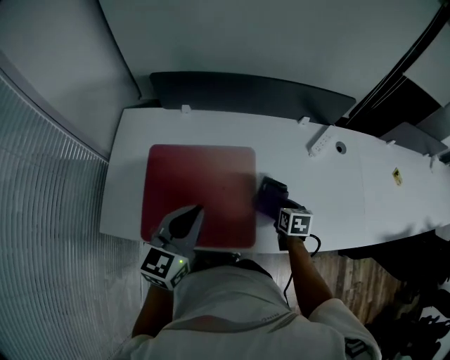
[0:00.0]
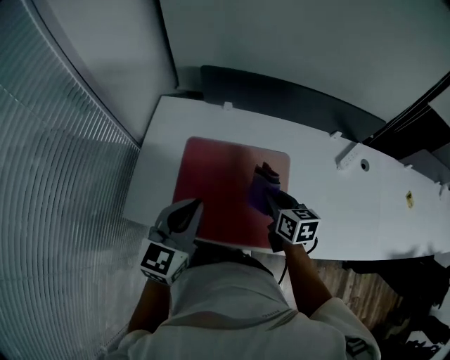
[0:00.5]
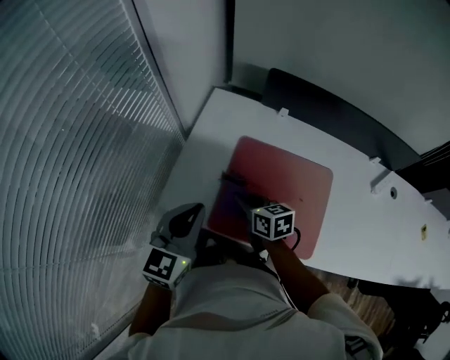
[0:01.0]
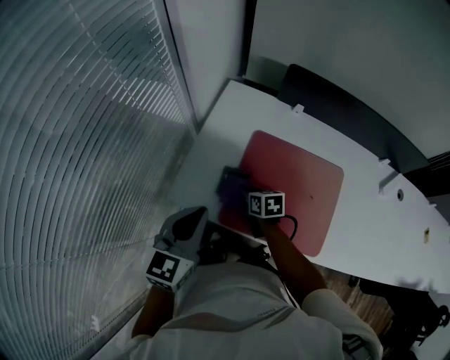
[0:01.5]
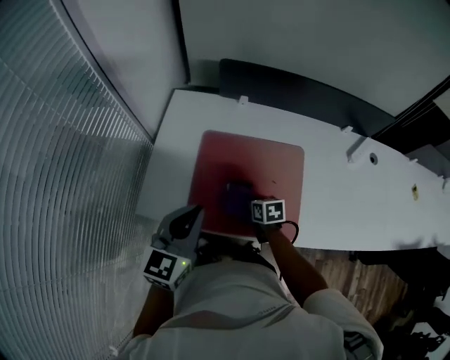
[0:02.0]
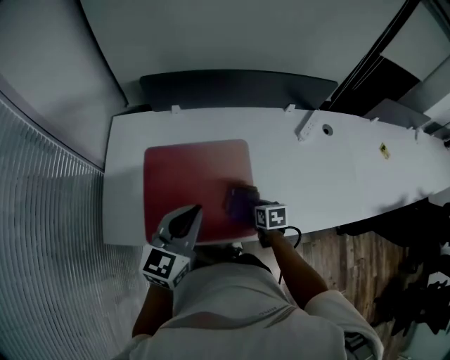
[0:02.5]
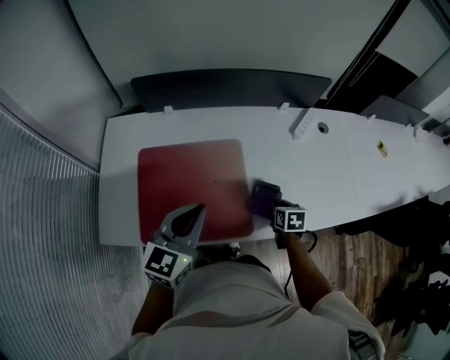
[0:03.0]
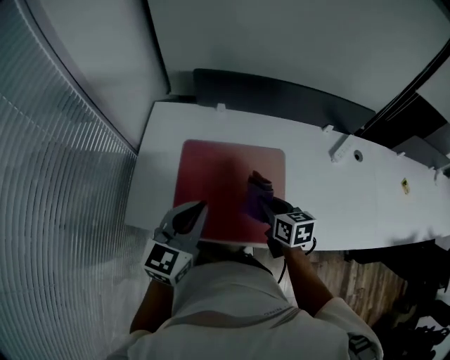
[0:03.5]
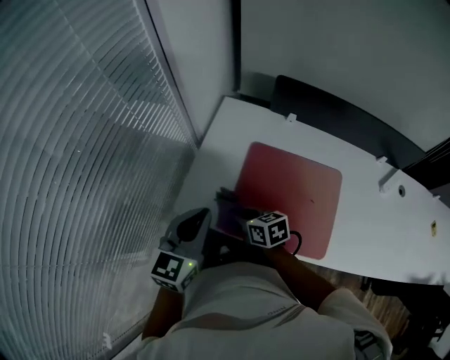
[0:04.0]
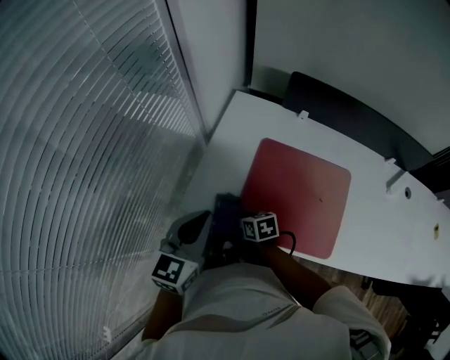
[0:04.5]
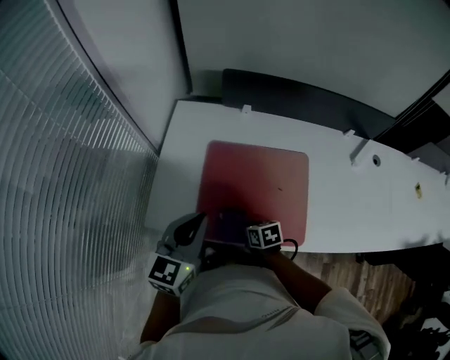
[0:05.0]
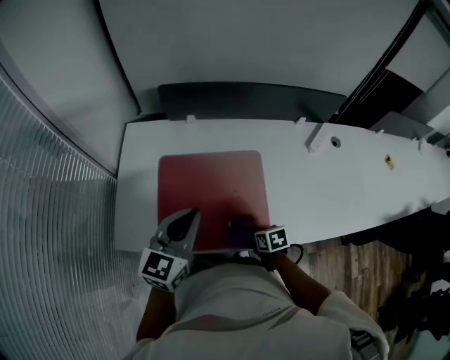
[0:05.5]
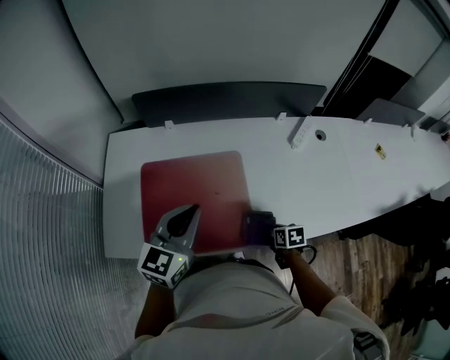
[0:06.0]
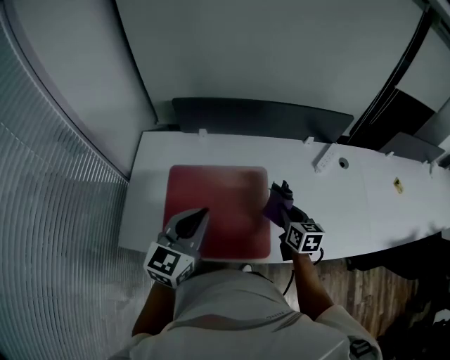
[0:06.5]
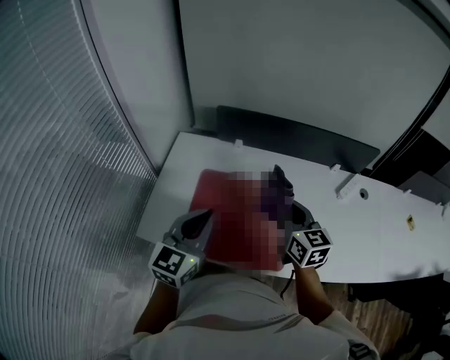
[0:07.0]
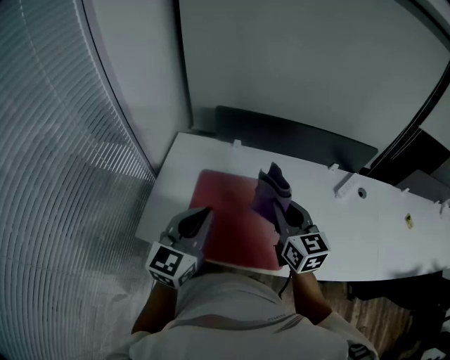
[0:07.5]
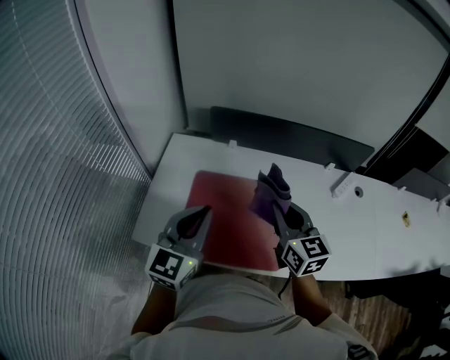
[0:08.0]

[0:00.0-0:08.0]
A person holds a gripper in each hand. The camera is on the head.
0:00.0 to 0:02.0: The right gripper reaches some 10 cm upward, then returns, and changes its angle by roughly 20 degrees.
0:02.0 to 0:04.0: The right gripper ends up some 25 cm from where it was, and rotates about 30 degrees.
0:04.0 to 0:06.0: The right gripper moves about 50 cm, and changes its angle by approximately 50 degrees. Meanwhile the left gripper ends up some 30 cm from where it was, and rotates some 30 degrees.
0:06.0 to 0:08.0: The right gripper heads upward and to the left, covering approximately 35 cm, and points its fingers roughly 50 degrees further upward; the left gripper is displaced to the left and upward by some 15 cm.

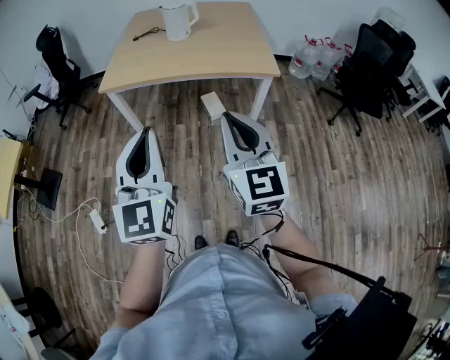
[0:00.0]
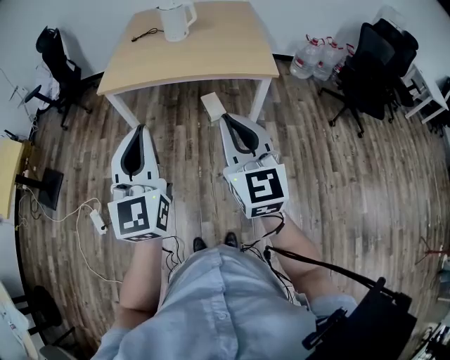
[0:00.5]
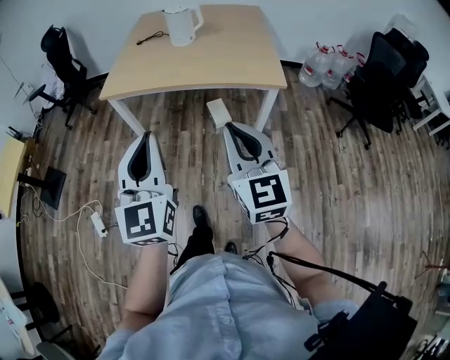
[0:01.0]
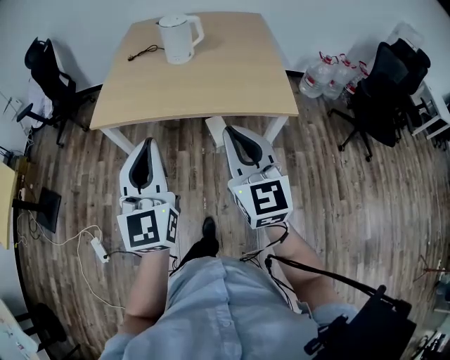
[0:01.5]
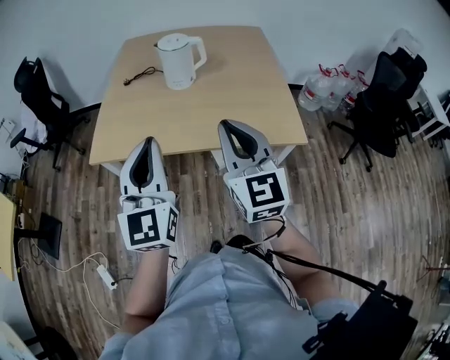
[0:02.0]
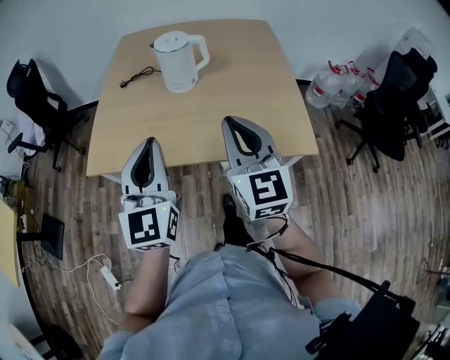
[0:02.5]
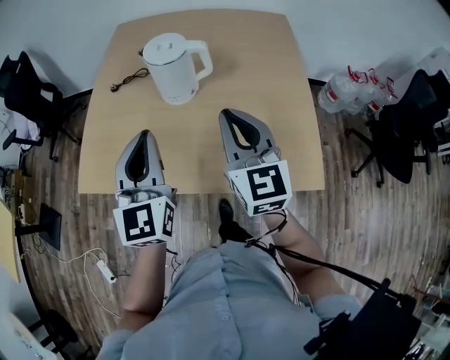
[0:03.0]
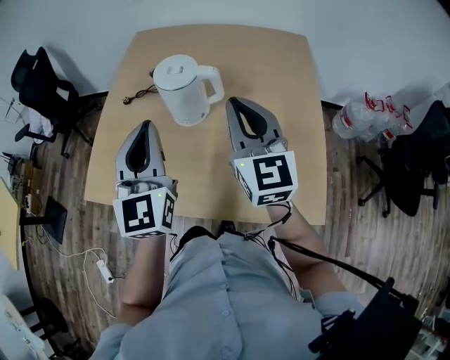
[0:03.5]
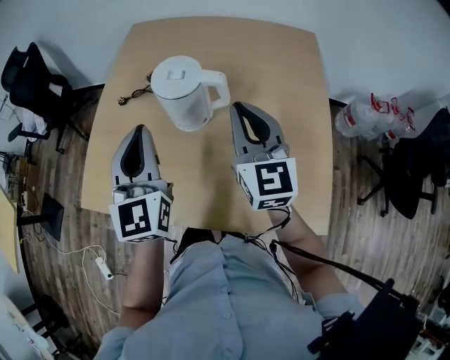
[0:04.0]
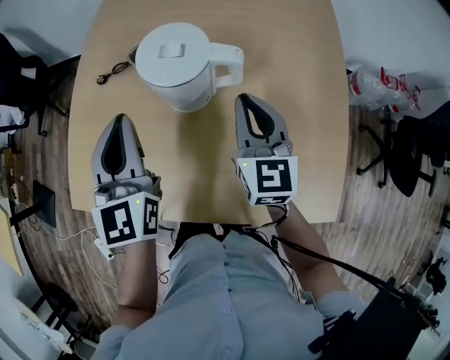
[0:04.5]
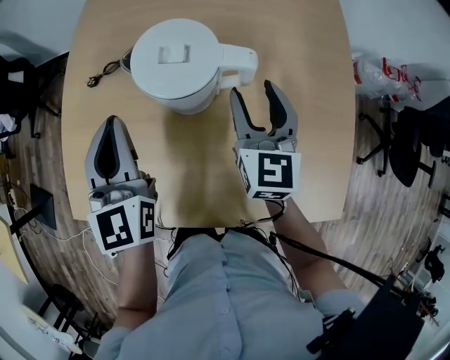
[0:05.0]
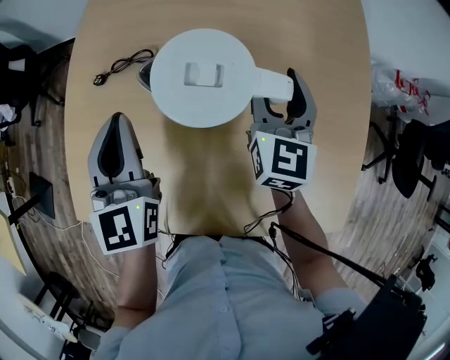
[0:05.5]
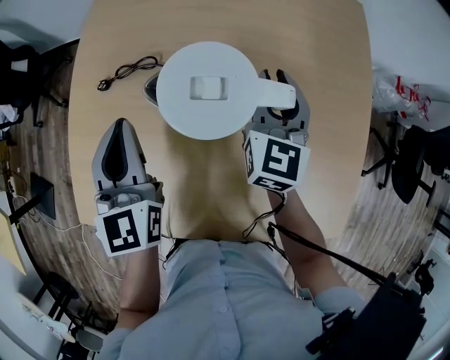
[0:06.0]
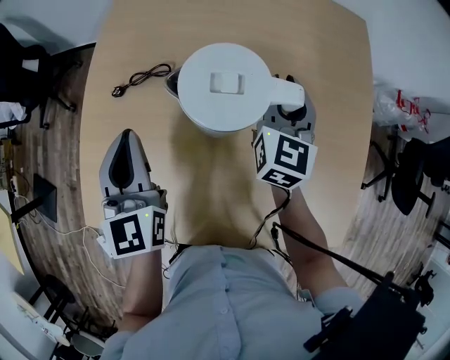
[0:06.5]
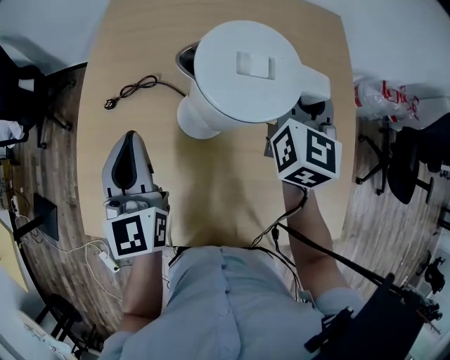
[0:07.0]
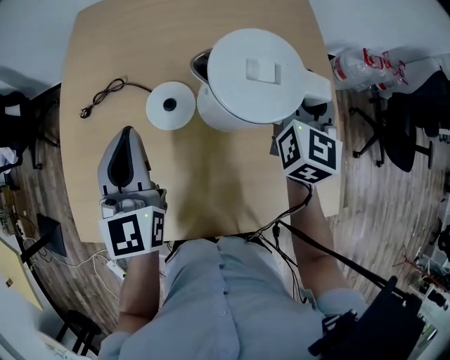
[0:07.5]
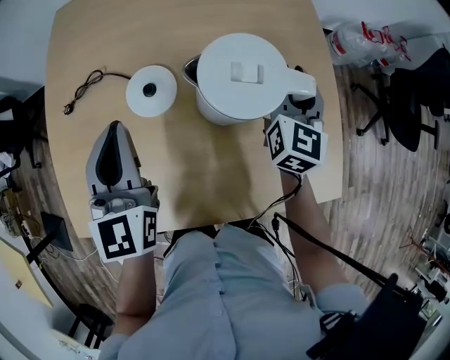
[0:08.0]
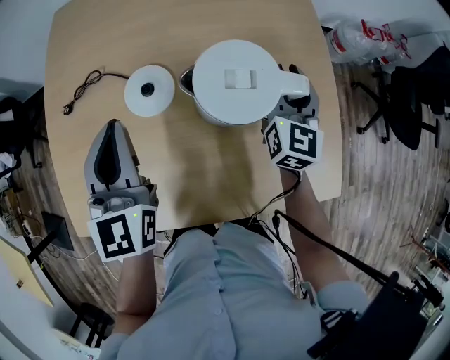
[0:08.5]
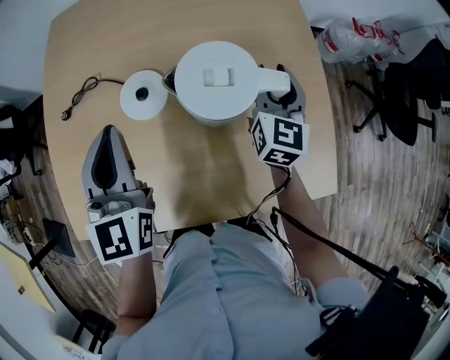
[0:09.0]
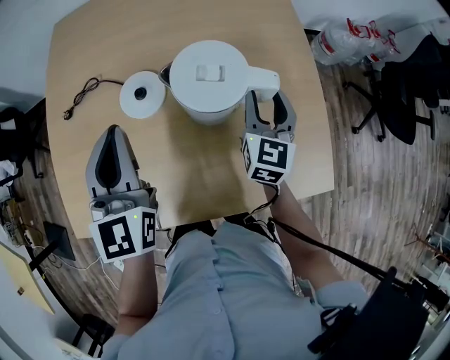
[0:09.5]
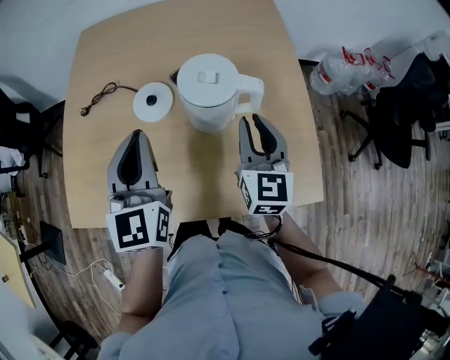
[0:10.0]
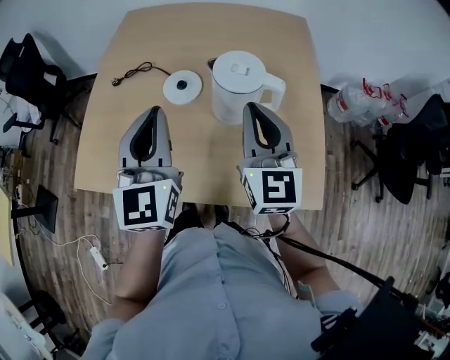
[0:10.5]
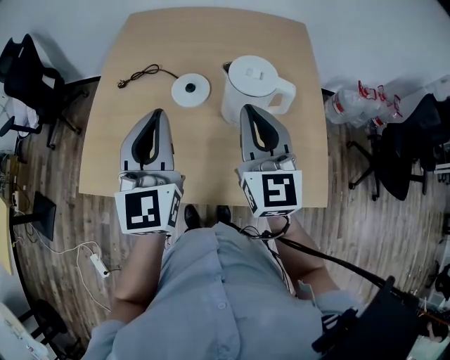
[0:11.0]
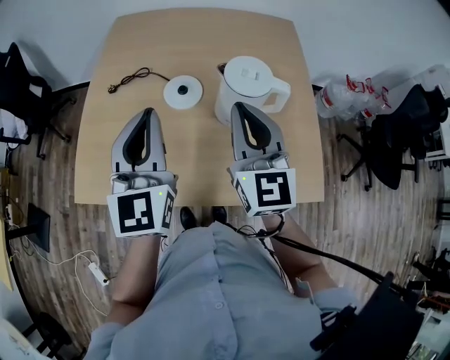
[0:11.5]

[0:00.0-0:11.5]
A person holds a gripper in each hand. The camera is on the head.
0:00.0 to 0:02.0: Both grippers move forward, some 35 cm.
0:02.0 to 0:04.0: Both grippers move forward, approximately 35 cm.
0:04.0 to 0:06.0: The left gripper travels forward, downward and to the left by approximately 15 cm. Meanwhile the right gripper shifts approximately 20 cm forward and downward, turns by roughly 20 degrees, and opens, then closes again.
0:06.0 to 0:07.5: The left gripper travels to the right by some 10 cm. Meanwhile the right gripper shifts some 15 cm to the right.
0:07.5 to 0:09.5: The right gripper shifts approximately 15 cm downward and backward, and opens. Meanwhile the left gripper heads to the right, covering about 5 cm.
0:09.5 to 0:11.5: The left gripper moves backward and upward, roughly 10 cm. The right gripper is displaced upward, to the left and backward by some 25 cm, rotates roughly 30 degrees, and closes.

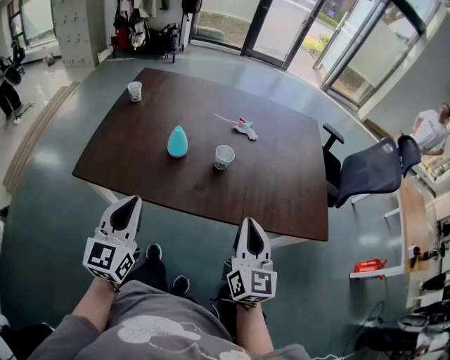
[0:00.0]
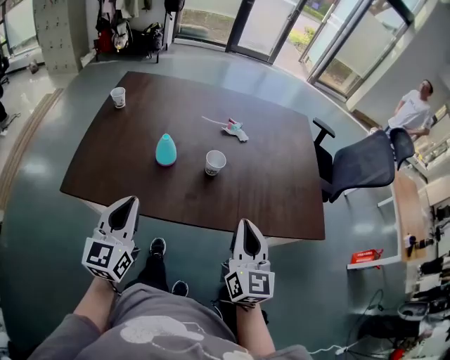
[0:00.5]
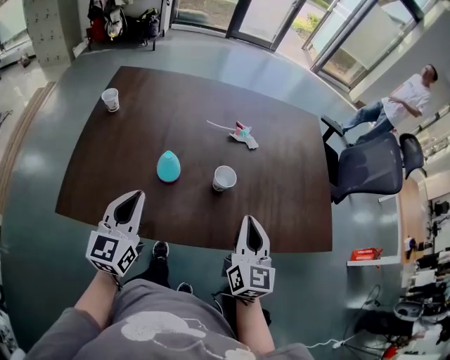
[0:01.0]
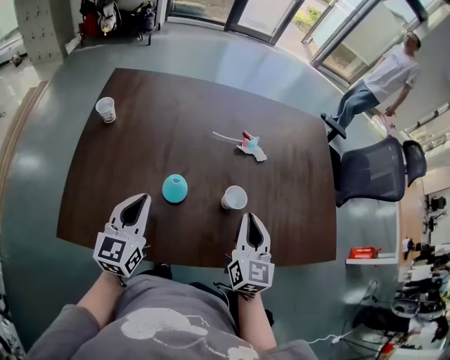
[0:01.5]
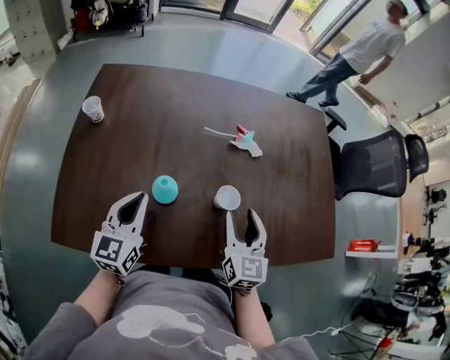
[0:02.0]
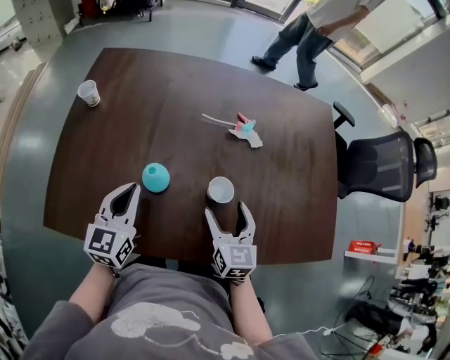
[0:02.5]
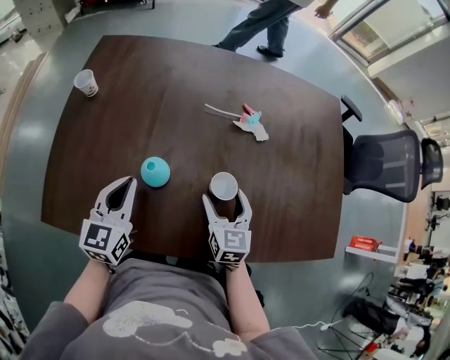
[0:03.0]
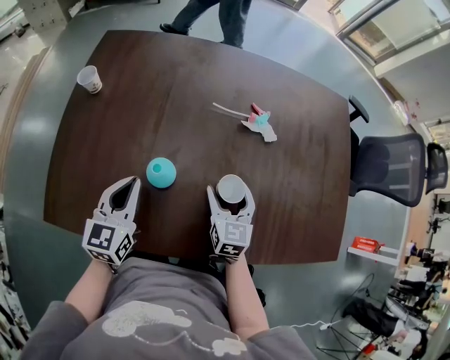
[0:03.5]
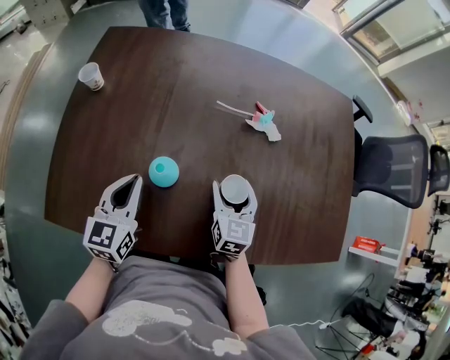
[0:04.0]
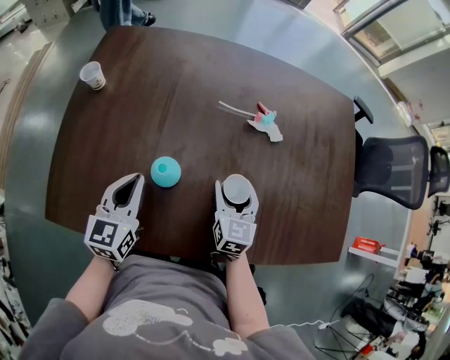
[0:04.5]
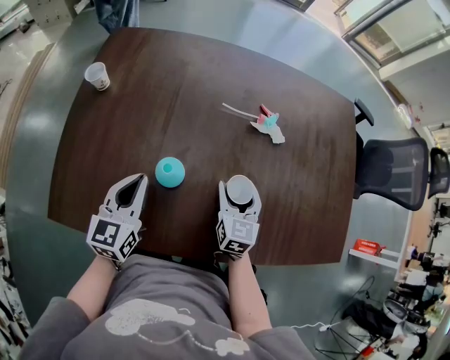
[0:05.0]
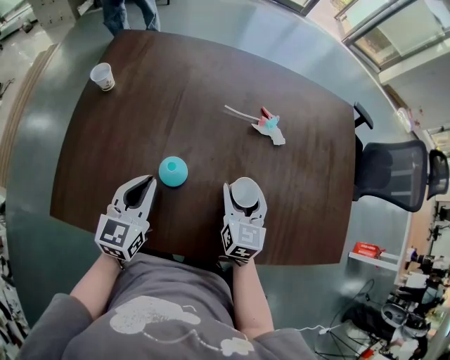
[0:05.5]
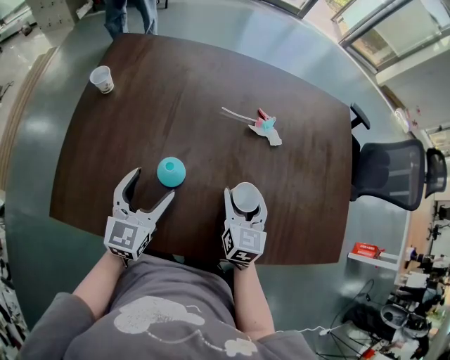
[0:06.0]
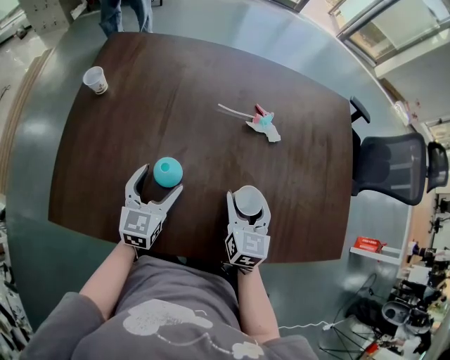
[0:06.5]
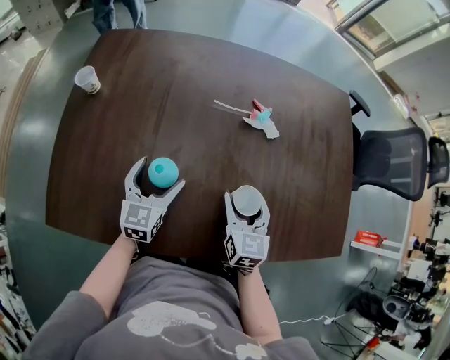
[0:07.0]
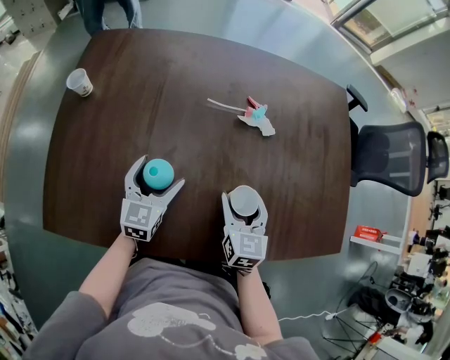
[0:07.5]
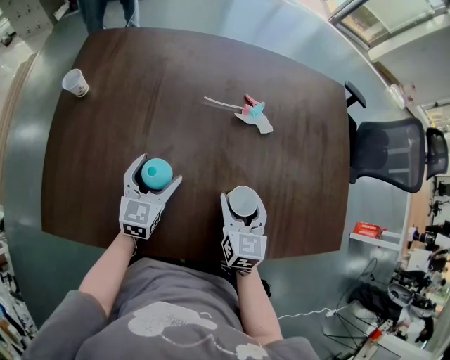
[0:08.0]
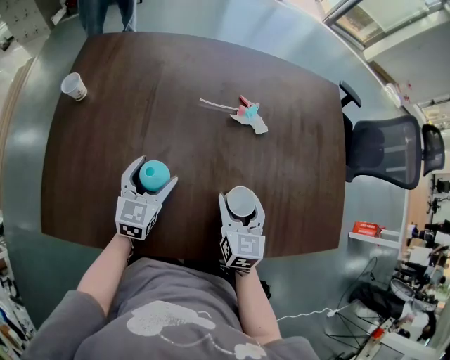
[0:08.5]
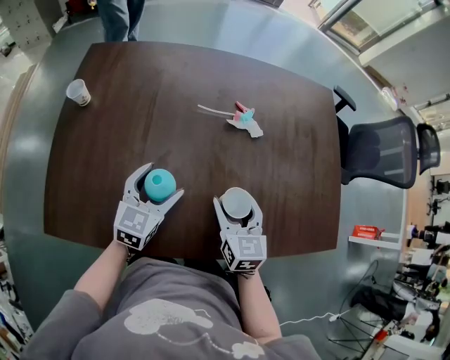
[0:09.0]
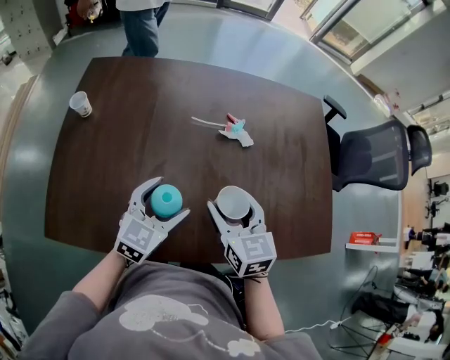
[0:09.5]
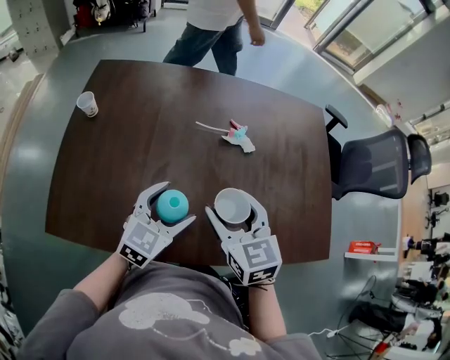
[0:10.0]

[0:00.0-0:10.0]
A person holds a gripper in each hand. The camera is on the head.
0:00.0 to 0:02.0: The two grippers go some 25 cm forward. The right gripper opens up.
0:02.0 to 0:04.0: The left gripper shifts some 5 cm downward; the right gripper shifts approximately 15 cm downward and forward.
0:04.0 to 0:06.0: The left gripper opens up.
0:06.0 to 0:08.0: The left gripper travels downward and forward by roughly 10 cm.
0:08.0 to 0:10.0: The right gripper moves upward, roughly 15 cm, and changes its angle by some 20 degrees; the left gripper is displaced upward, to the right and backward by roughly 15 cm.
